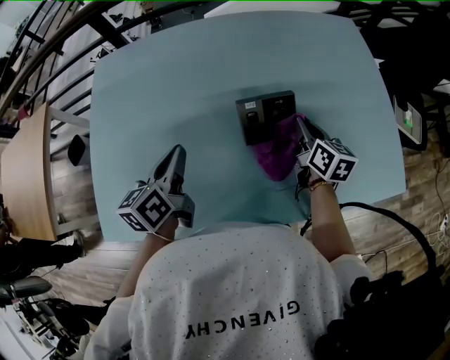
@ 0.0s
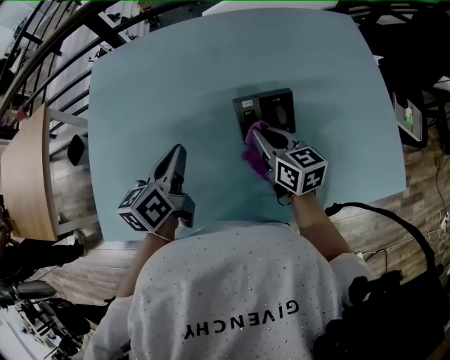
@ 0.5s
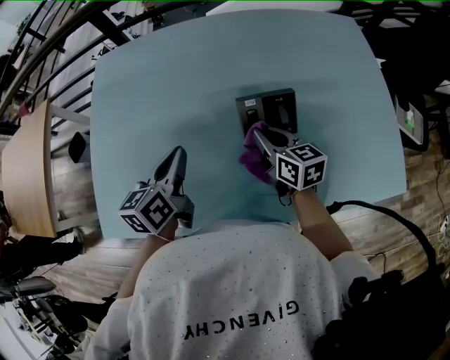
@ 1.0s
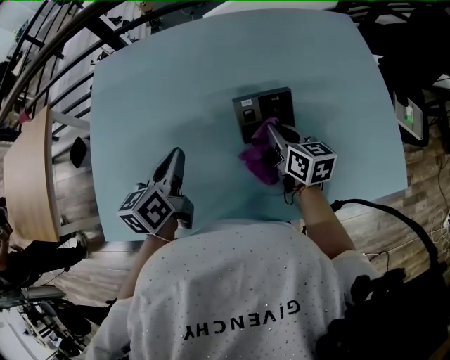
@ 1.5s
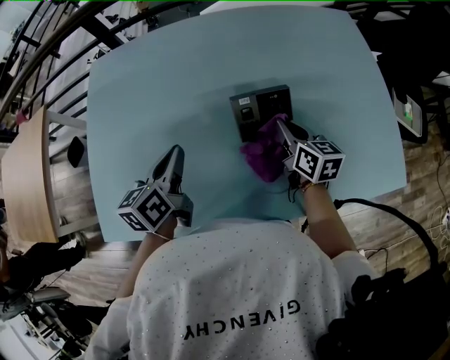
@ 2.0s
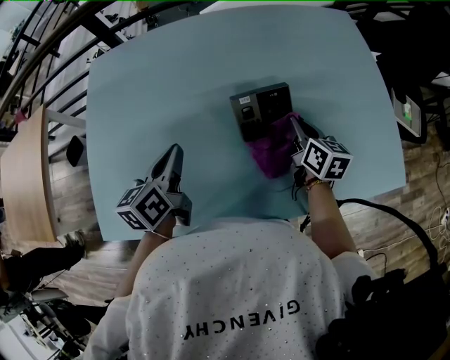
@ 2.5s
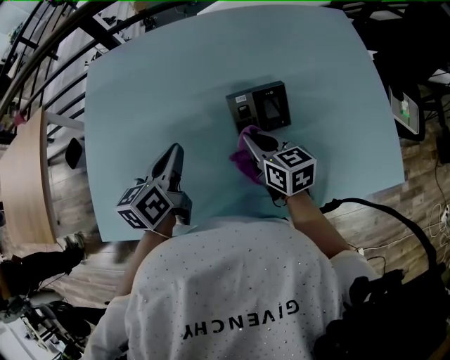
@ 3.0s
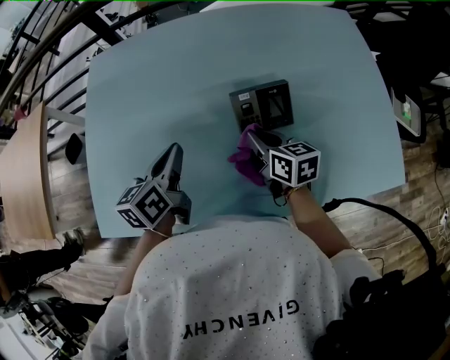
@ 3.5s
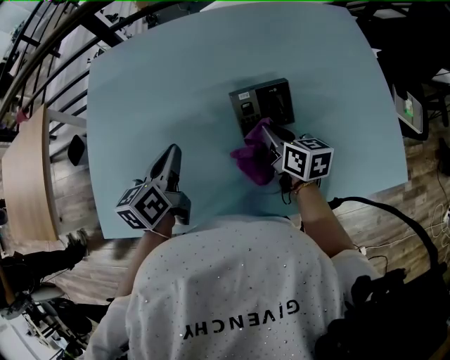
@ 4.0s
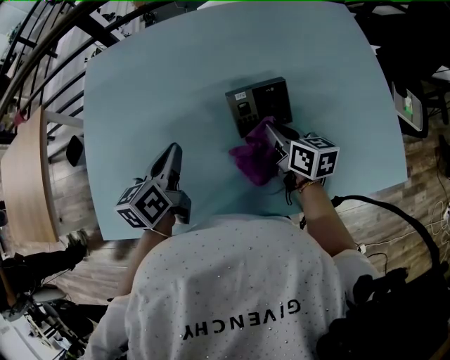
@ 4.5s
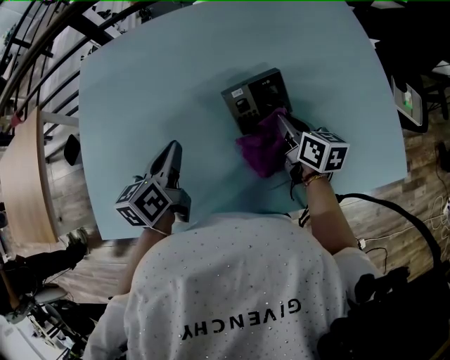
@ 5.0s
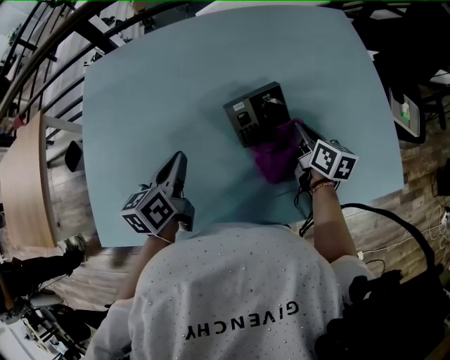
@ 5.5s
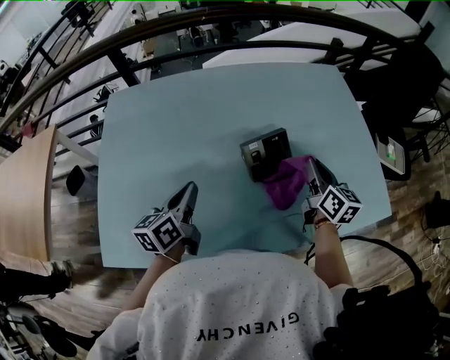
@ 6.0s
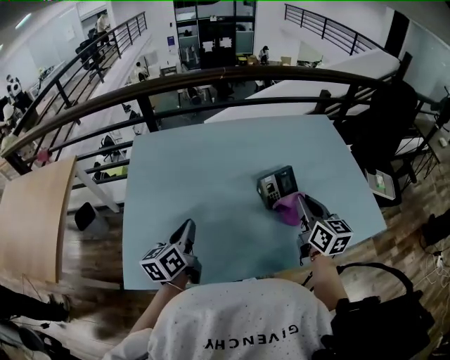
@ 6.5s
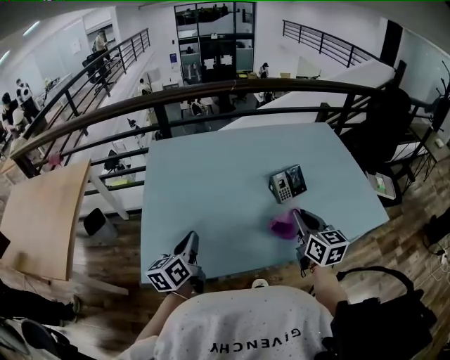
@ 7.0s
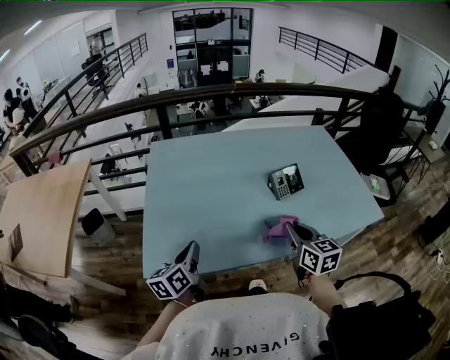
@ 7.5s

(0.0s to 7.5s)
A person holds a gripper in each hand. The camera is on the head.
2.0s - 4.0s: The right gripper swings left and right, roughly 15 cm each way, with 2 reversals.
4.0s - 5.5s: The right gripper is displaced to the right by roughly 10 cm.
5.5s - 7.5s: The right gripper moves backward, to the left and upward, approximately 40 cm, and changes its angle by roughly 30 degrees. Meanwhile the left gripper is displaced to the left and backward by roughly 30 cm.

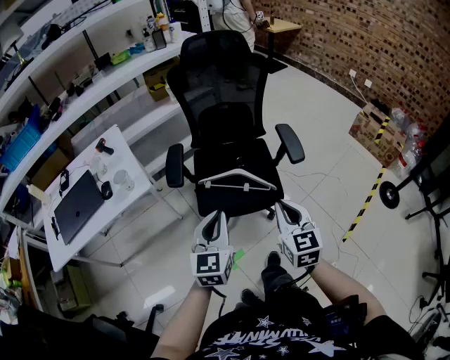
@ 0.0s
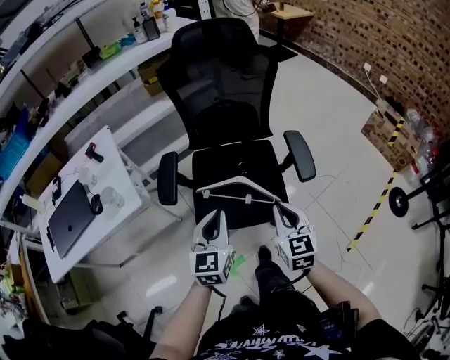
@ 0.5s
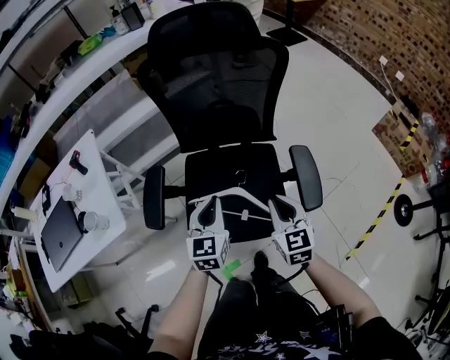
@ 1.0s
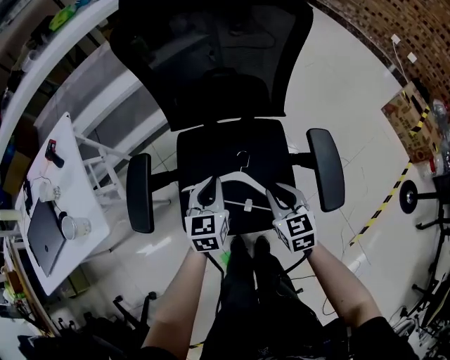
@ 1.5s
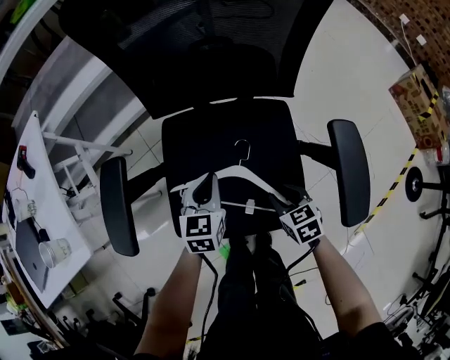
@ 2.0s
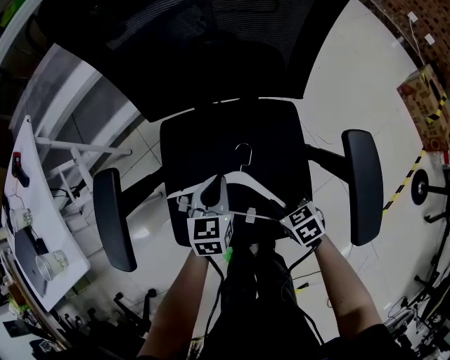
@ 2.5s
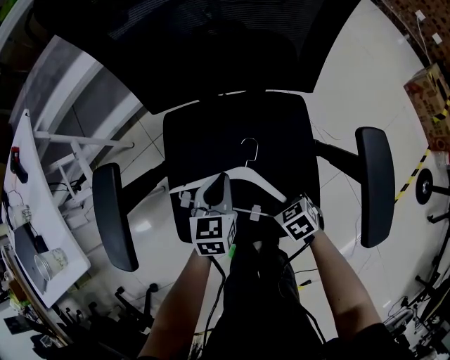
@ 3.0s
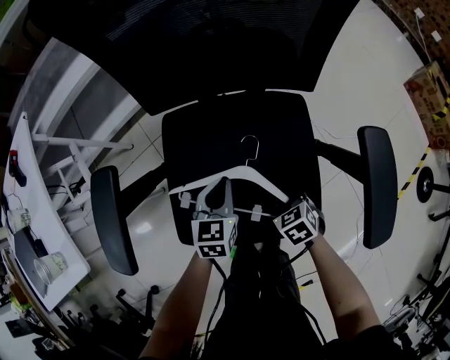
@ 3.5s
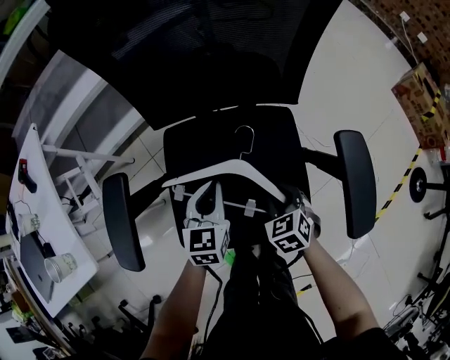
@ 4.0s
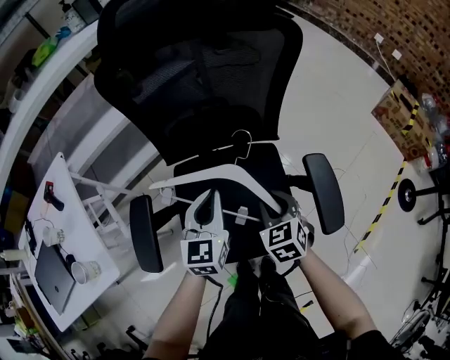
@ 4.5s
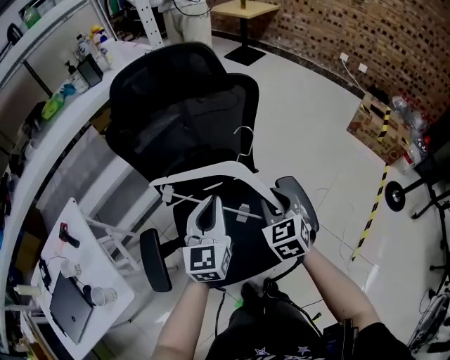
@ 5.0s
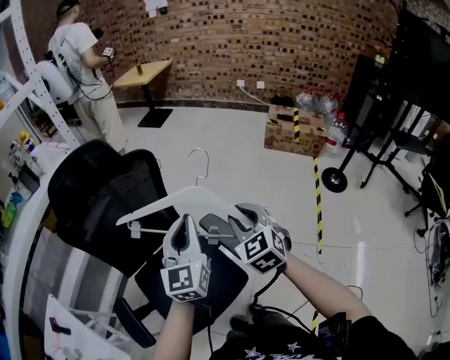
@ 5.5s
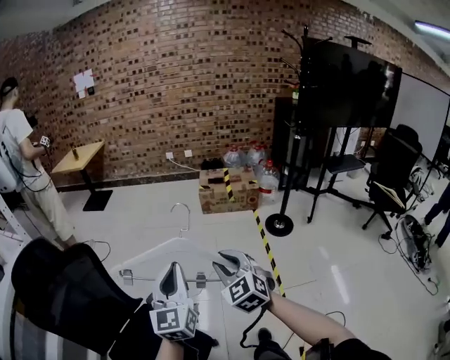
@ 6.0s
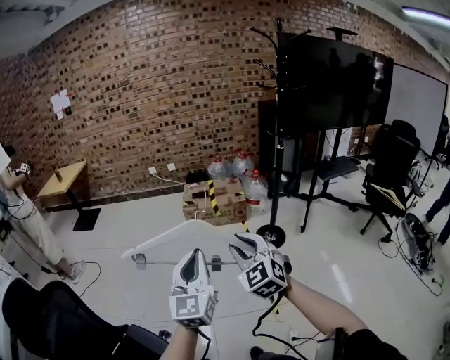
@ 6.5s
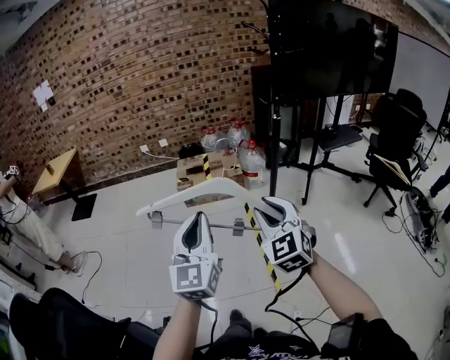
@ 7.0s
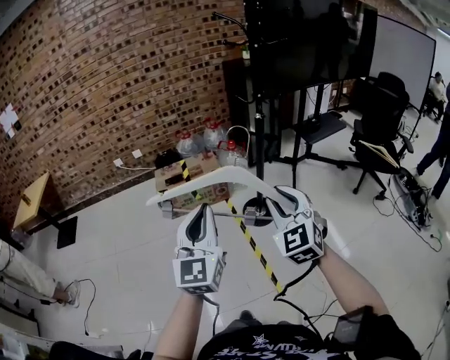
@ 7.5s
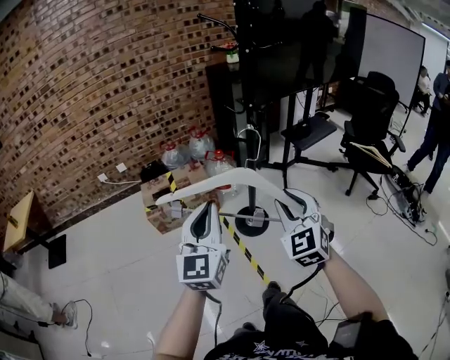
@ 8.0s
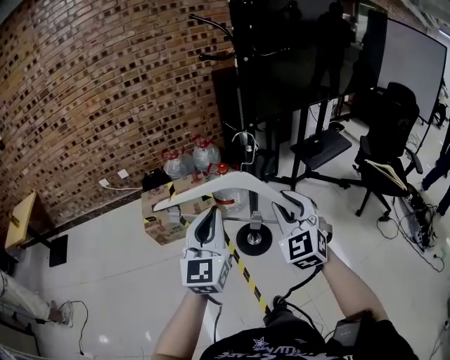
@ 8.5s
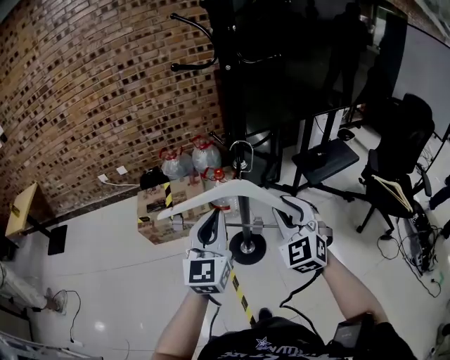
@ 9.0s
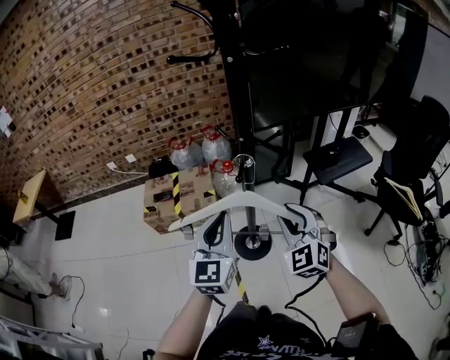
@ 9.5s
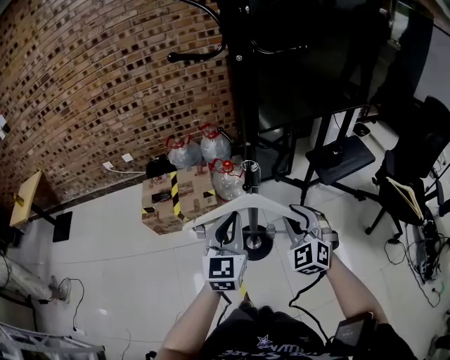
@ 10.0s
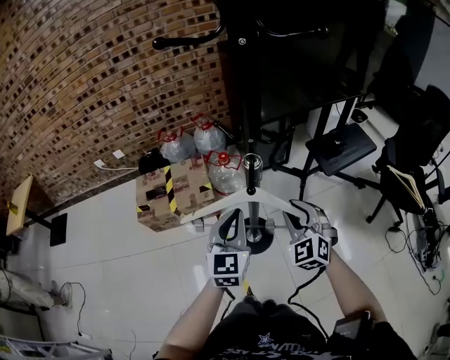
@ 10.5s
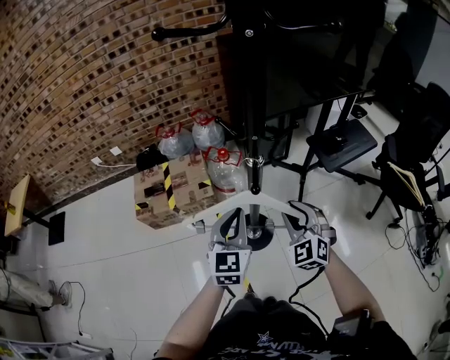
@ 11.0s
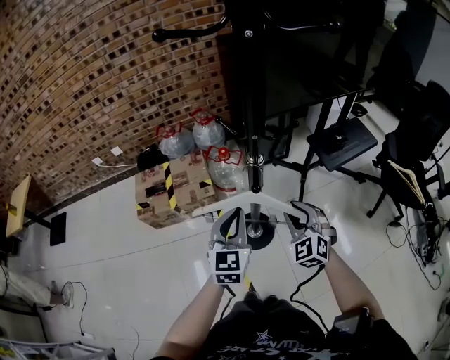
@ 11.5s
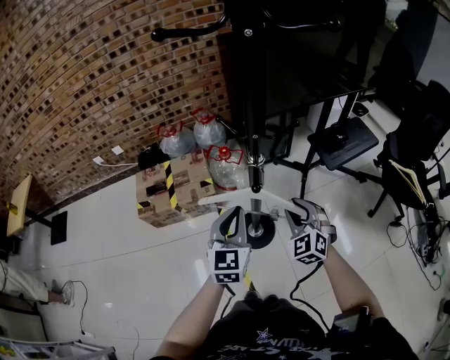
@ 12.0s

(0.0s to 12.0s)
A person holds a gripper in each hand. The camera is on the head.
0.0s - 2.0s: The right gripper moves downward and forward, roughly 40 cm, points its fingers roughly 40 degrees further downward, and opens its fingers. The left gripper travels forward and downward by some 40 cm, and rotates roughly 20 degrees.
2.0s - 4.0s: The right gripper goes downward and returns, some 10 cm each way.
4.0s - 6.0s: Both grippers move upward, some 40 cm. The right gripper tips its fingers upward by roughly 30 degrees; the left gripper angles its fingers upward, by approximately 30 degrees.
6.0s - 8.0s: The pair of grippers is taken about 50 cm. The left gripper swivels about 30 degrees. Meanwhile the right gripper rotates roughly 40 degrees.
8.0s - 10.0s: Both grippers move forward, to the right and downward, about 30 cm.
10.0s - 12.0s: Both grippers travel together downward, approximately 5 cm.

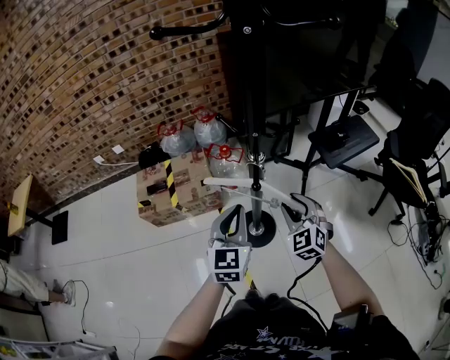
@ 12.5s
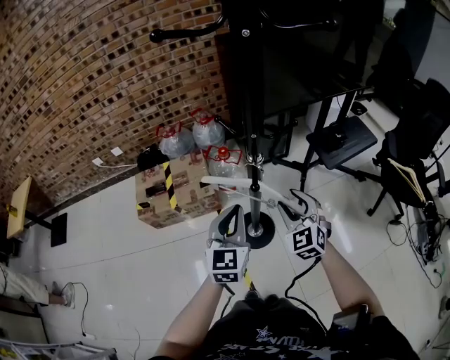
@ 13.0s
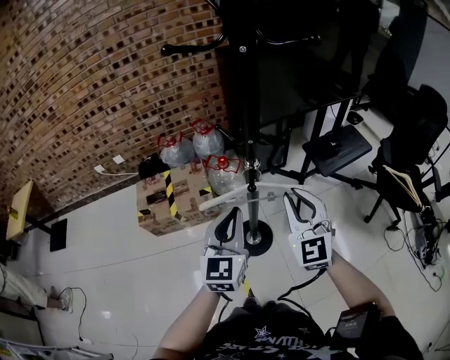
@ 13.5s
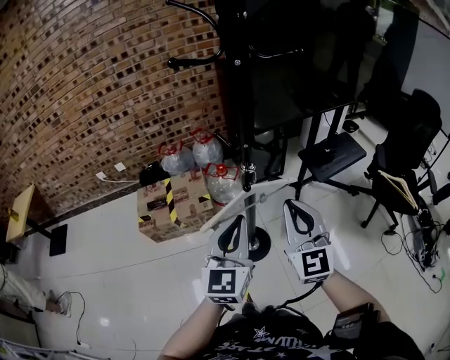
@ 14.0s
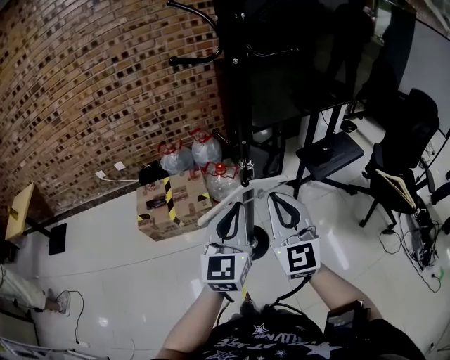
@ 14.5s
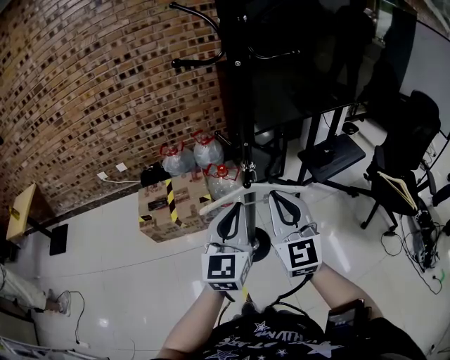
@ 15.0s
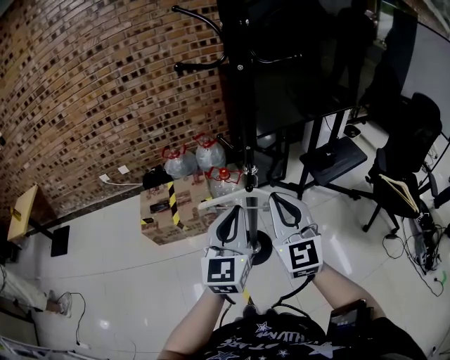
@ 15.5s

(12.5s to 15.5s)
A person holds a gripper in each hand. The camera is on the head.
12.5s - 14.0s: The right gripper goes about 20 cm upward and backward, swivels some 40 degrees, and closes up. Meanwhile the left gripper travels upward and backward by some 15 cm.
14.0s - 15.5s: The grippers make only small movements.

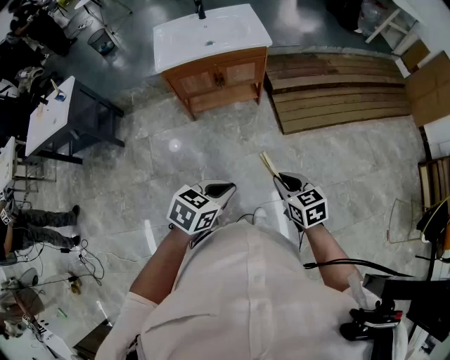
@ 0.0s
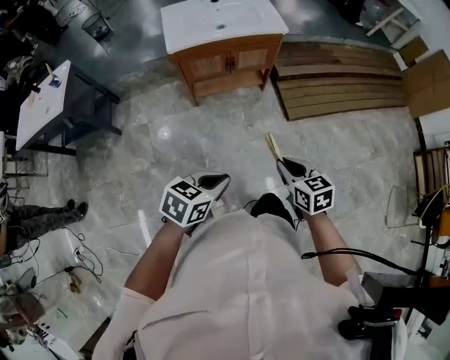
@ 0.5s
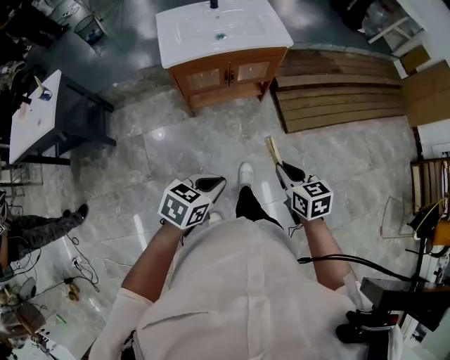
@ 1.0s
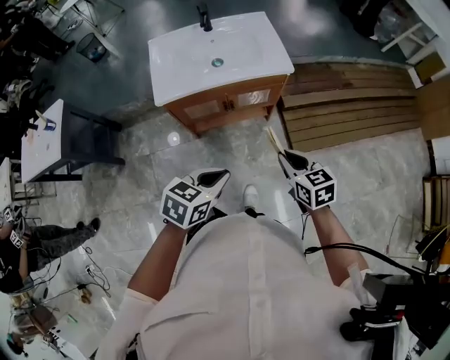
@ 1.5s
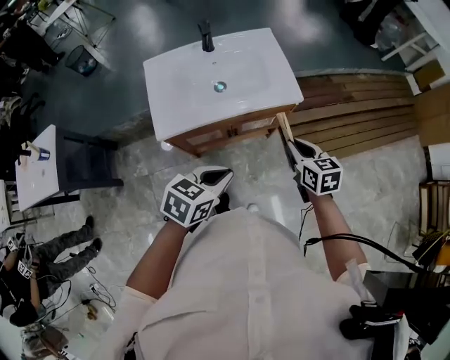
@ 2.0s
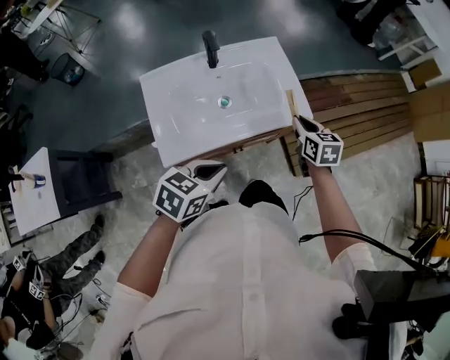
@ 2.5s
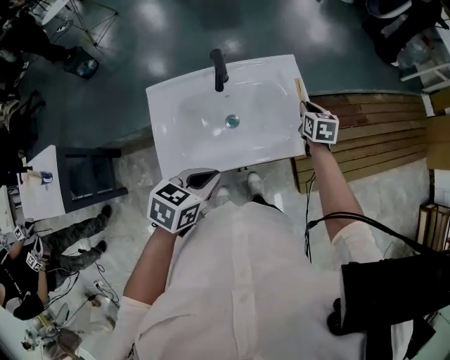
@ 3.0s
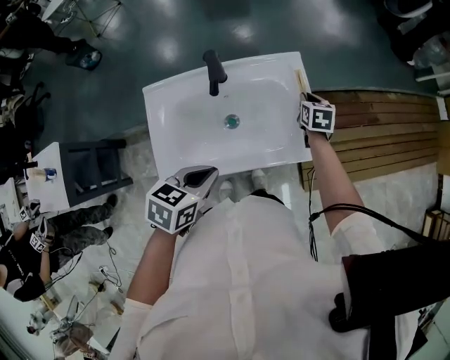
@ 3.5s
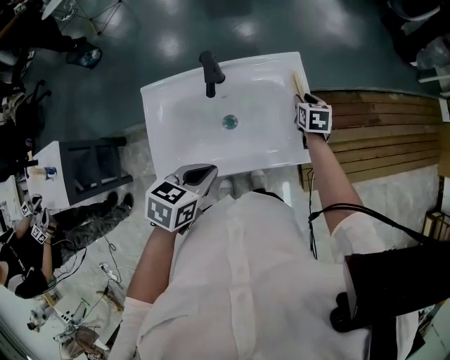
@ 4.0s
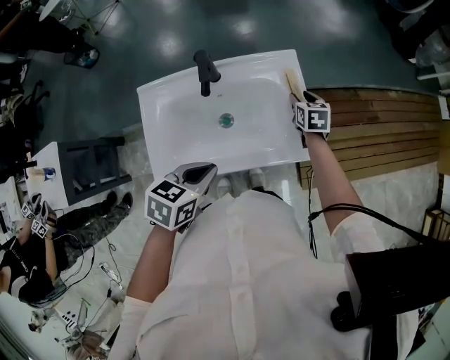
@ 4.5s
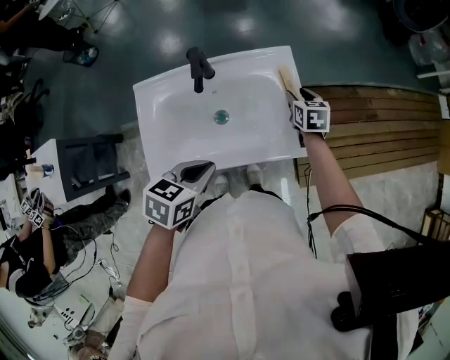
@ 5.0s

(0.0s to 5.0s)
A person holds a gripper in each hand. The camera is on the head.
0.0s - 2.5s: The two grippers travel together, forward and to the left, roughly 60 cm. The right gripper turns by approximately 20 degrees.
2.5s - 5.0s: The left gripper is displaced forward by about 15 cm, and swivels roughly 20 degrees, while the right gripper moves forward and downward, some 25 cm, and opens.
